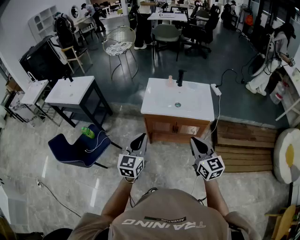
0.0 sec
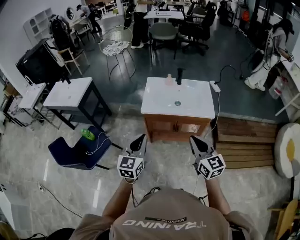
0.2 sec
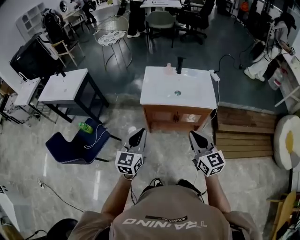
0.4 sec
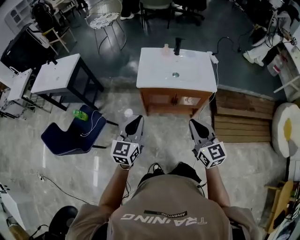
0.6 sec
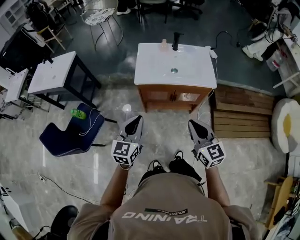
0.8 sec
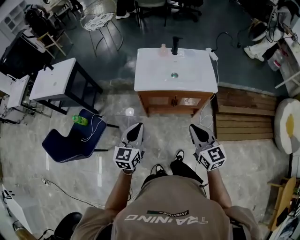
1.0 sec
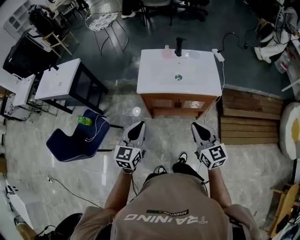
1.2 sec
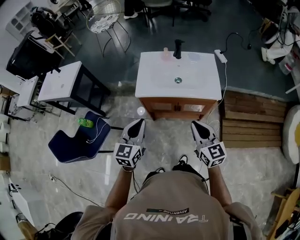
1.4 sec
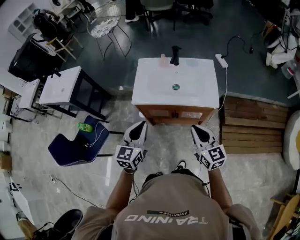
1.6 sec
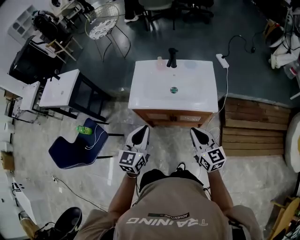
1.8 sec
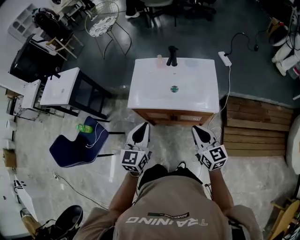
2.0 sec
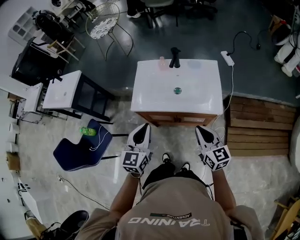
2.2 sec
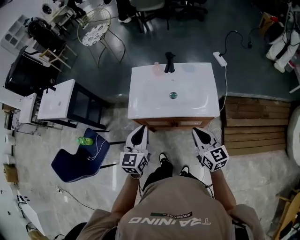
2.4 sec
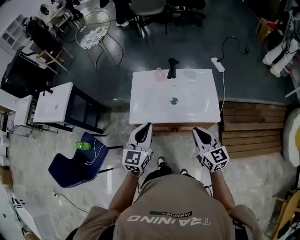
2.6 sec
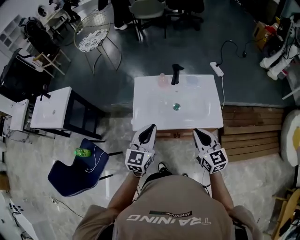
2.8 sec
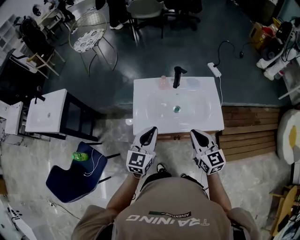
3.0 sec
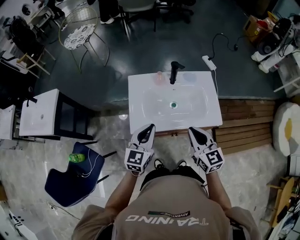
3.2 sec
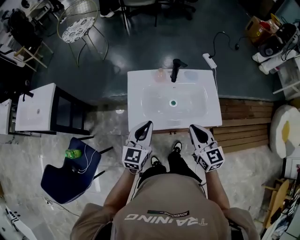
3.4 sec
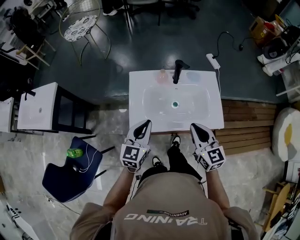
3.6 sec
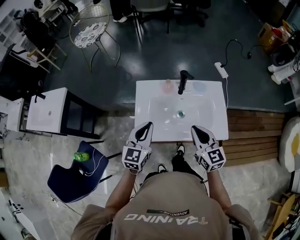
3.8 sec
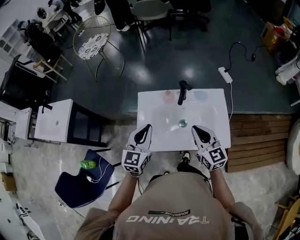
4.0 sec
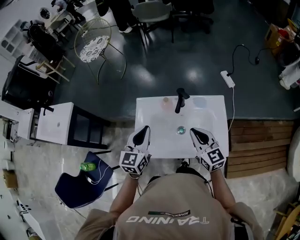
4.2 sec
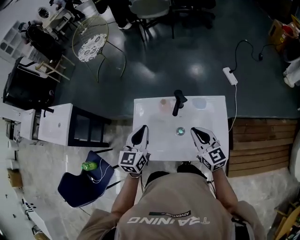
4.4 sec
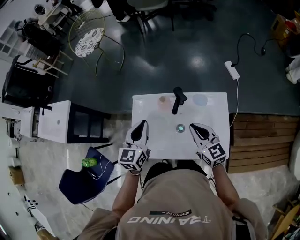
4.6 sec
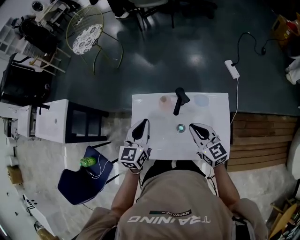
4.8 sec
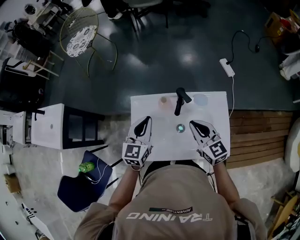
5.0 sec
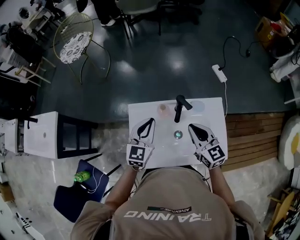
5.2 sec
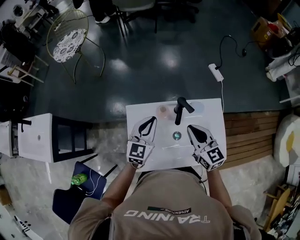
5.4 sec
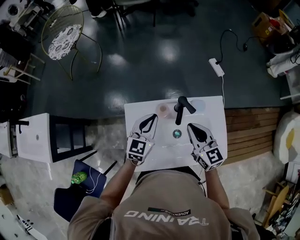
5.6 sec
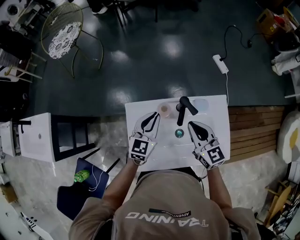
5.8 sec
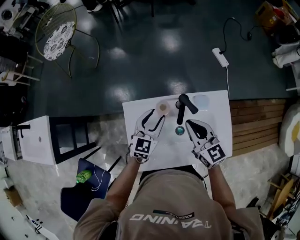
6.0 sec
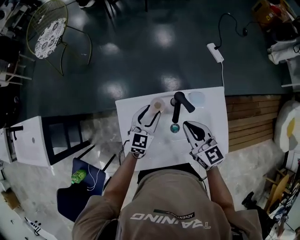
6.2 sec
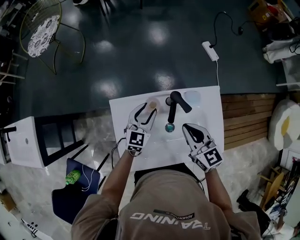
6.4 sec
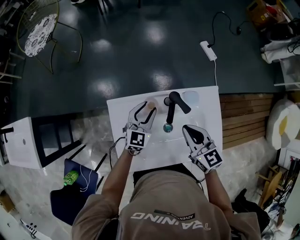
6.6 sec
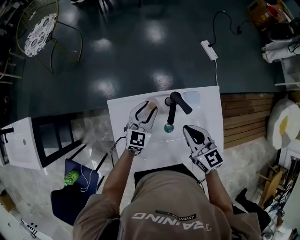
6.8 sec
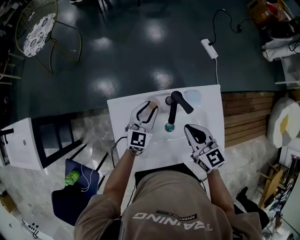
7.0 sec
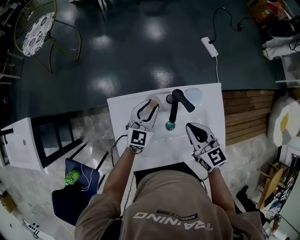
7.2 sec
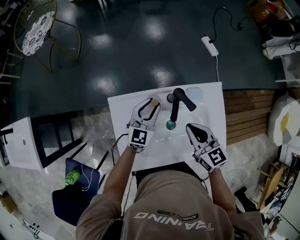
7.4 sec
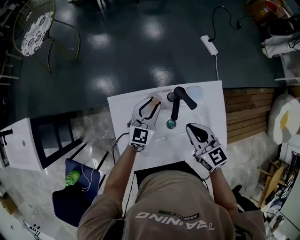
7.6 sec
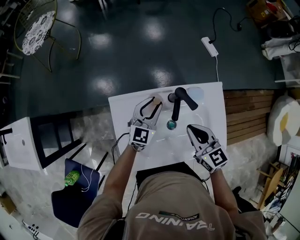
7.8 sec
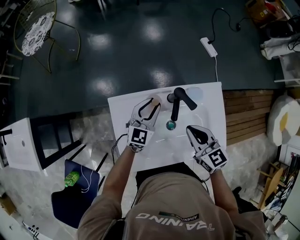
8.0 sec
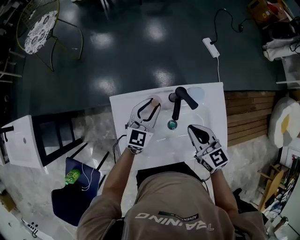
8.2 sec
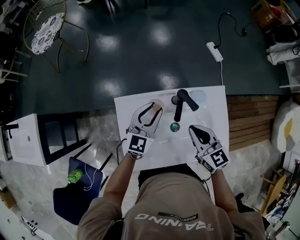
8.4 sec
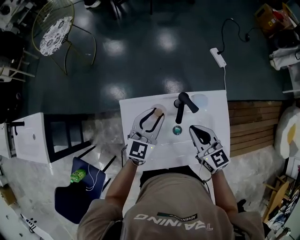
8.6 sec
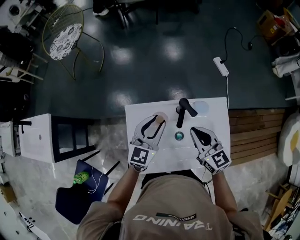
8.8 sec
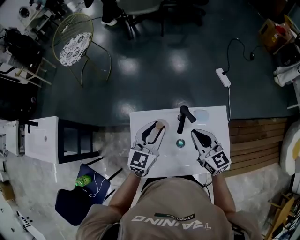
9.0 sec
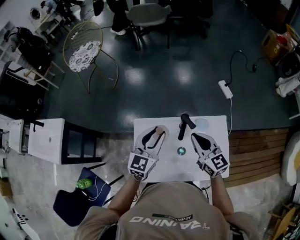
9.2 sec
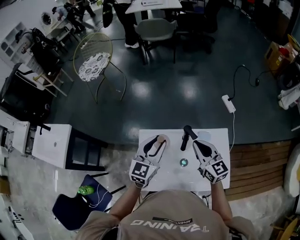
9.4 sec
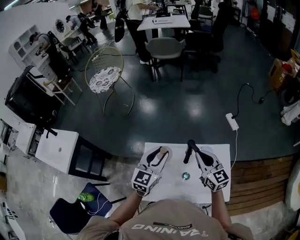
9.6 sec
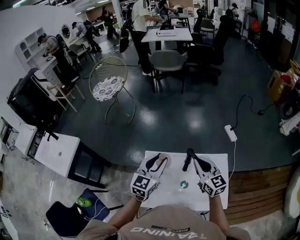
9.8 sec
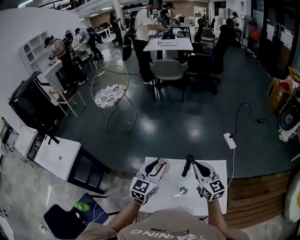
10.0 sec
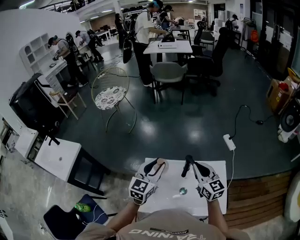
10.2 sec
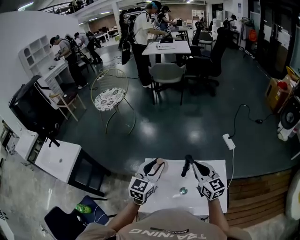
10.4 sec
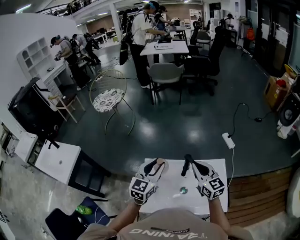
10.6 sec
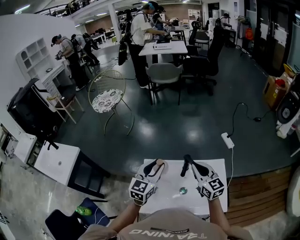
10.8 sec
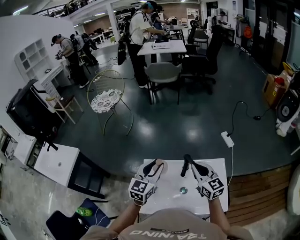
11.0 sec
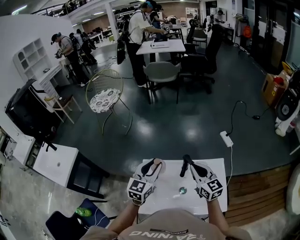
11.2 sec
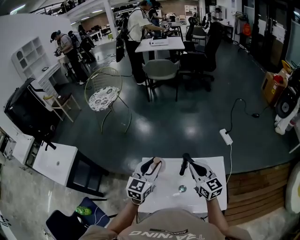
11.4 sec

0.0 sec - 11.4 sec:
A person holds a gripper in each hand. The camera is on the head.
0.0 sec - 1.4 sec: Both grippers travel together forward and downward, some 10 cm.
1.4 sec - 2.8 sec: The two grippers go approximately 15 cm forward.
2.8 sec - 4.2 sec: Both grippers travel together forward, roughly 20 cm.
4.2 sec - 5.6 sec: The left gripper is displaced forward and downward by roughly 15 cm, while the right gripper moves forward, about 10 cm.
5.6 sec - 7.2 sec: The left gripper shifts some 10 cm downward, and opens its fingers, while the right gripper goes roughly 5 cm downward.
7.2 sec - 8.6 sec: The left gripper moves upward, approximately 10 cm.
8.6 sec - 10.0 sec: The grippers both shift upward by some 10 cm.
10.0 sec - 11.4 sec: Both grippers stay about where they are.

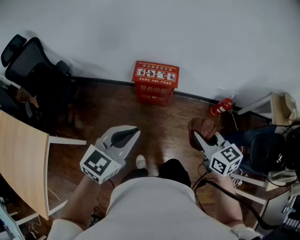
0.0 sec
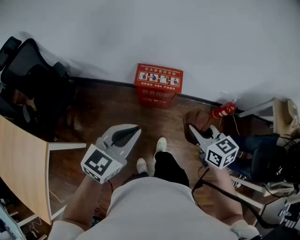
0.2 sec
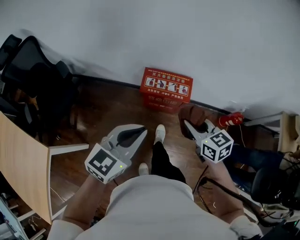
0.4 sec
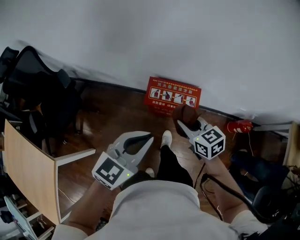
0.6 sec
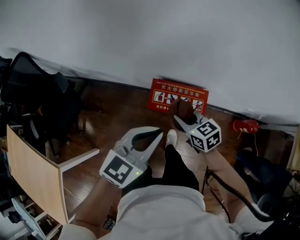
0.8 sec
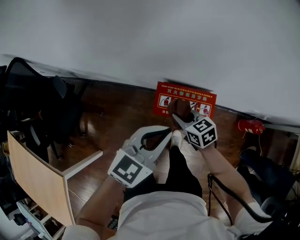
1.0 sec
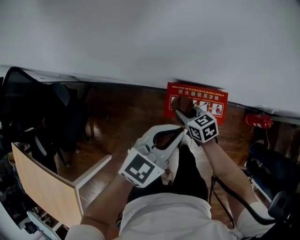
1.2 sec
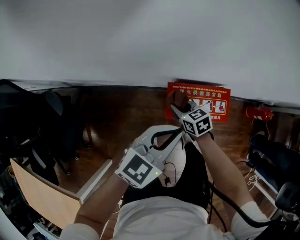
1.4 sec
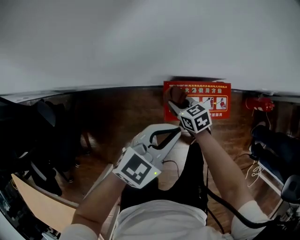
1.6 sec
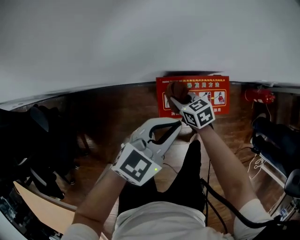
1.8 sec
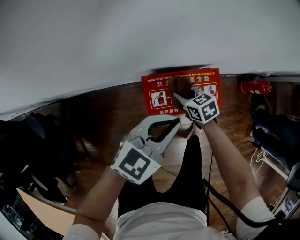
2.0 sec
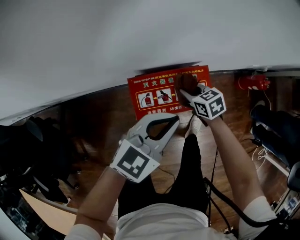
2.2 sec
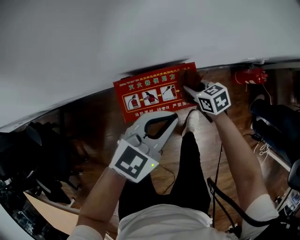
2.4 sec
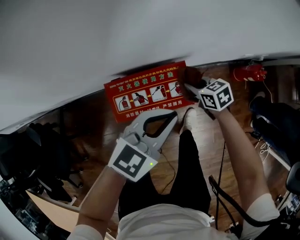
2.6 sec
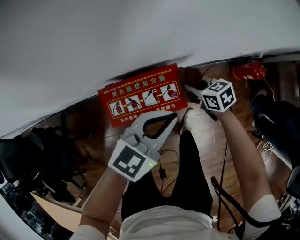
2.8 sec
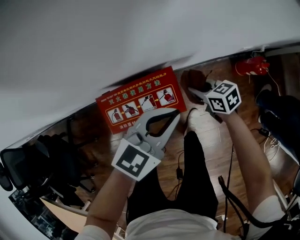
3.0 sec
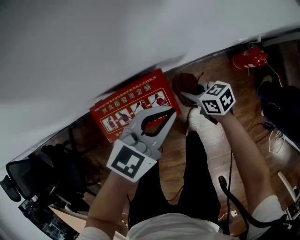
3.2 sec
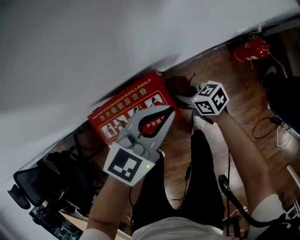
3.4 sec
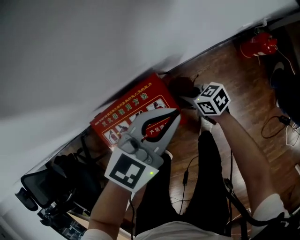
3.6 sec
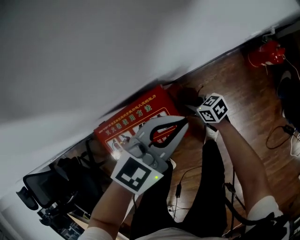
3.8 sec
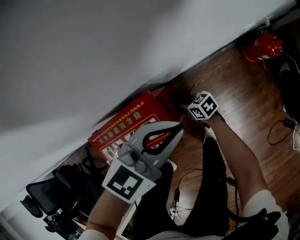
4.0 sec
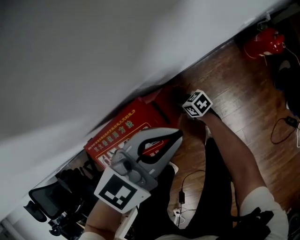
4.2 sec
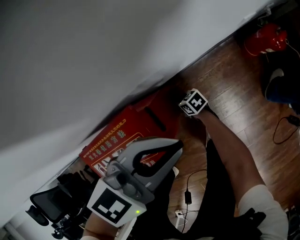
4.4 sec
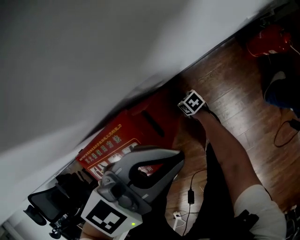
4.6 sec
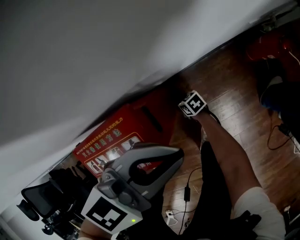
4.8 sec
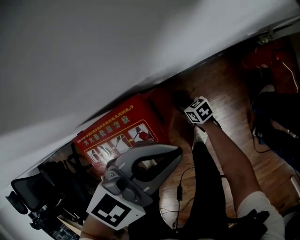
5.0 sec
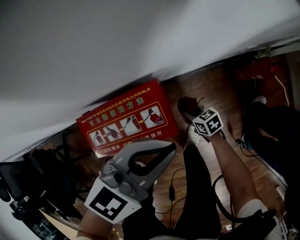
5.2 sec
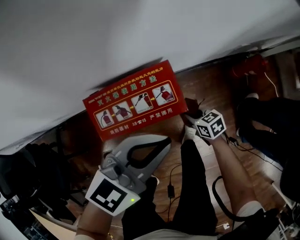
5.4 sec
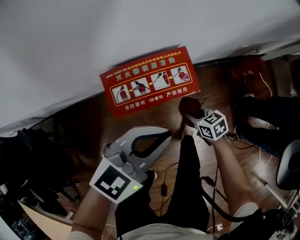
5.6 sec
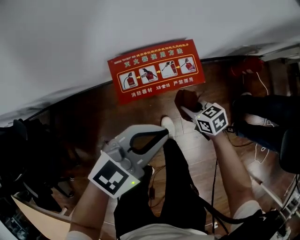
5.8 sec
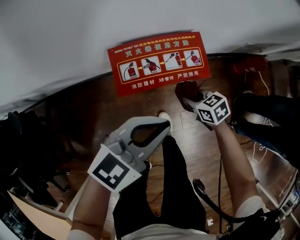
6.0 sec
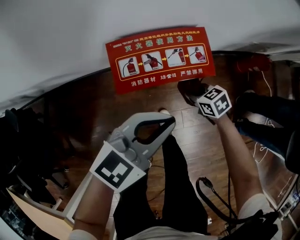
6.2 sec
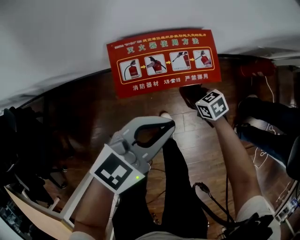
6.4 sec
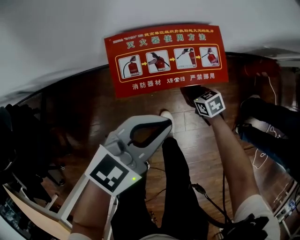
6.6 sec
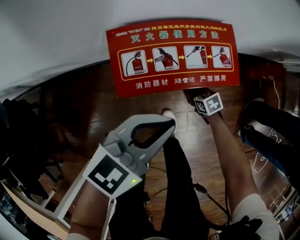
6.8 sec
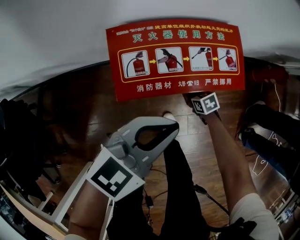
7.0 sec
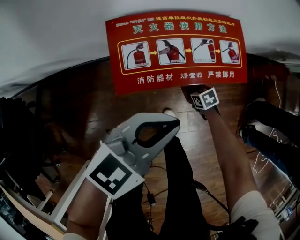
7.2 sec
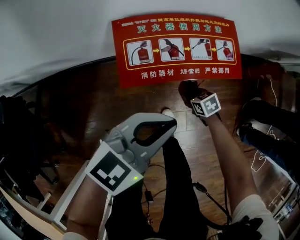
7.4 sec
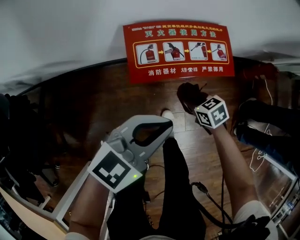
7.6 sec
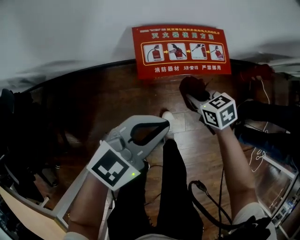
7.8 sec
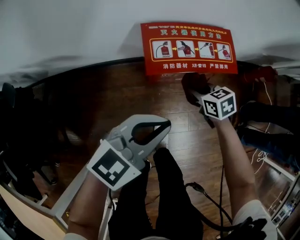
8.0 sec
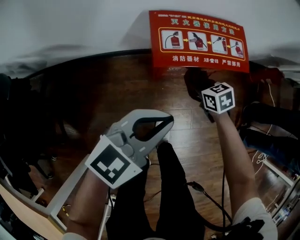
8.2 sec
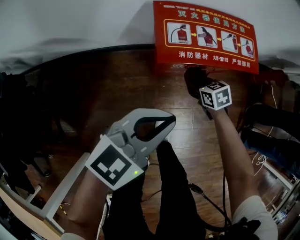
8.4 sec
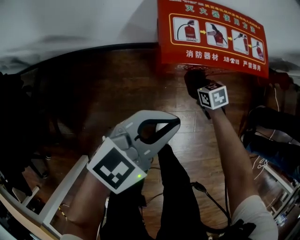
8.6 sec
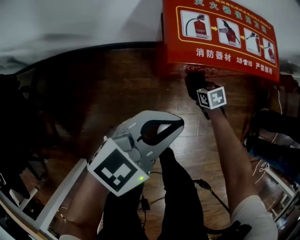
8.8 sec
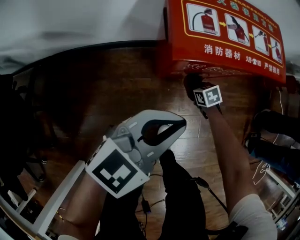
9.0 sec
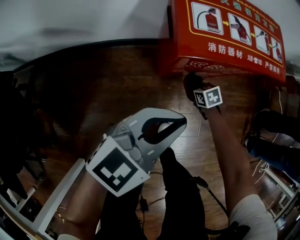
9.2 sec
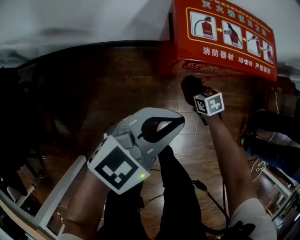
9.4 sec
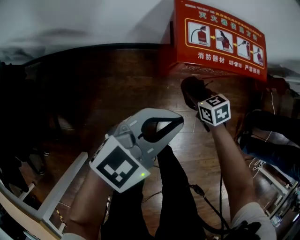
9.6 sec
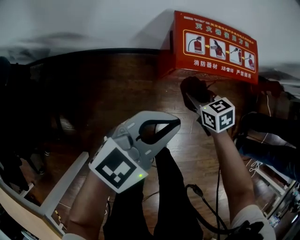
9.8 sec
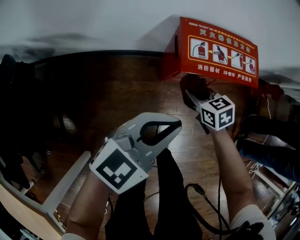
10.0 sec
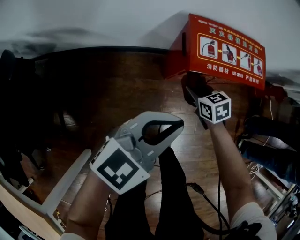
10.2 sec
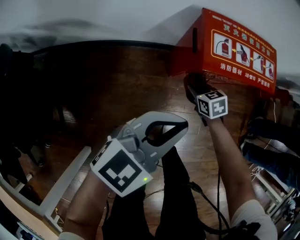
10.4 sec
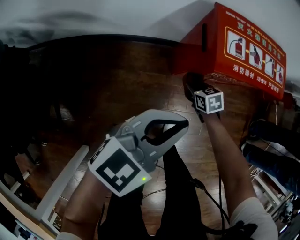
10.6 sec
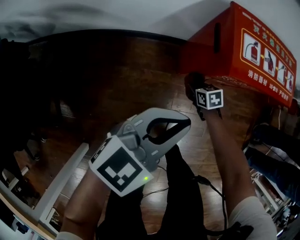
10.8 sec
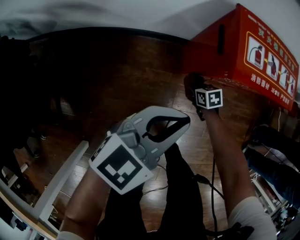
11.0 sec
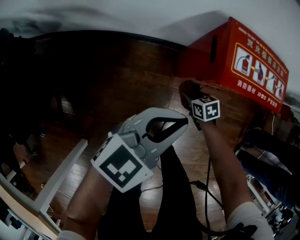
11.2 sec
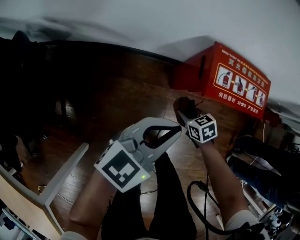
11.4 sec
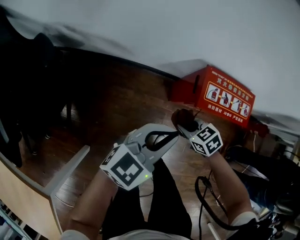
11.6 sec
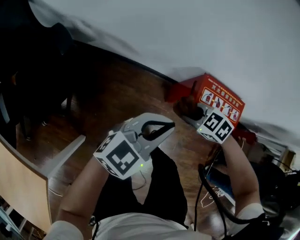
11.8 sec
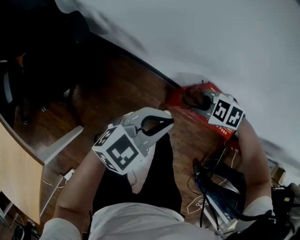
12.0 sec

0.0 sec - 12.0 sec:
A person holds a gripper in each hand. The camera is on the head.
0.0 sec - 1.6 sec: The right gripper shifts approximately 60 cm forward, downward and to the left; the left gripper moves forward and downward, some 40 cm, and turns by approximately 20 degrees.
1.6 sec - 3.0 sec: Both grippers move to the right, about 30 cm.
3.0 sec - 4.4 sec: The right gripper heads downward, covering roughly 35 cm. The left gripper moves some 15 cm.
4.4 sec - 6.0 sec: The left gripper changes place by some 30 cm, while the right gripper travels upward by some 25 cm, and turns by approximately 20 degrees.
6.0 sec - 7.6 sec: The right gripper goes downward and returns, roughly 25 cm each way. Meanwhile the left gripper is displaced downward by some 5 cm.
7.6 sec - 9.0 sec: The right gripper is displaced downward by approximately 25 cm. Meanwhile the left gripper goes approximately 15 cm downward.
9.0 sec - 10.4 sec: The left gripper travels upward and to the left by some 10 cm. The right gripper heads upward and to the left, covering about 20 cm.
10.4 sec - 12.0 sec: The left gripper heads upward, covering roughly 15 cm, and changes its angle by approximately 20 degrees. Meanwhile the right gripper shifts roughly 35 cm upward, and rotates around the line of its fingers by about 70 degrees, counterclockwise from behind.
